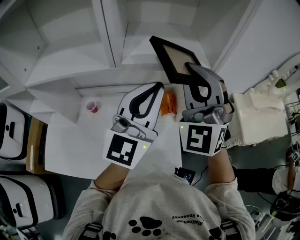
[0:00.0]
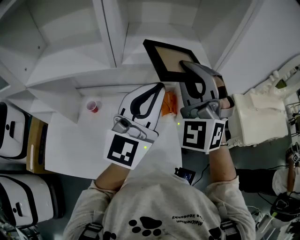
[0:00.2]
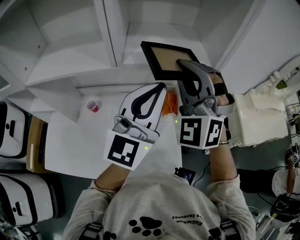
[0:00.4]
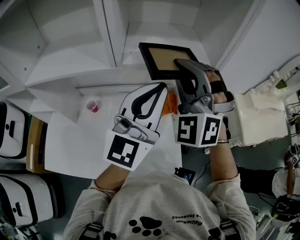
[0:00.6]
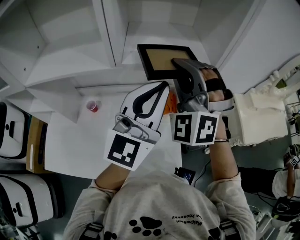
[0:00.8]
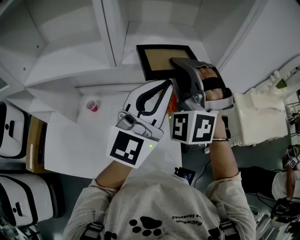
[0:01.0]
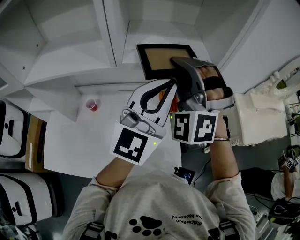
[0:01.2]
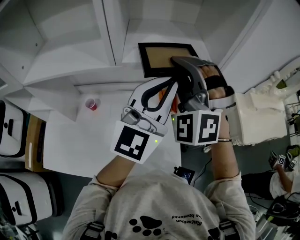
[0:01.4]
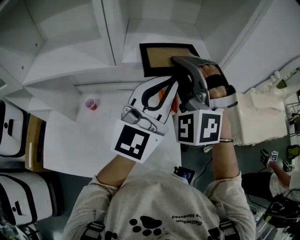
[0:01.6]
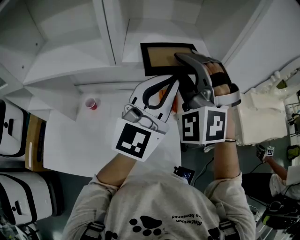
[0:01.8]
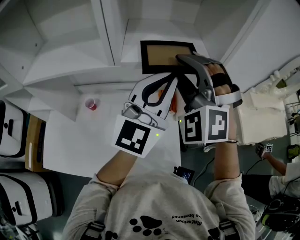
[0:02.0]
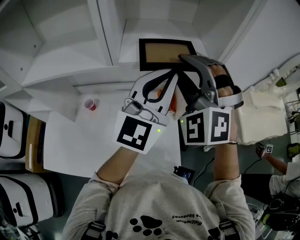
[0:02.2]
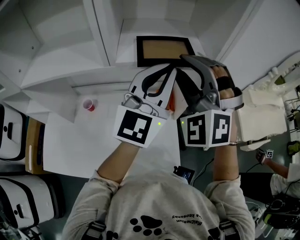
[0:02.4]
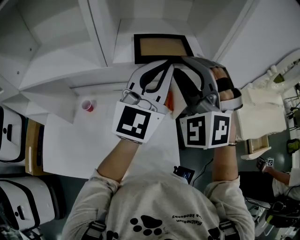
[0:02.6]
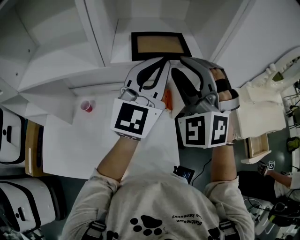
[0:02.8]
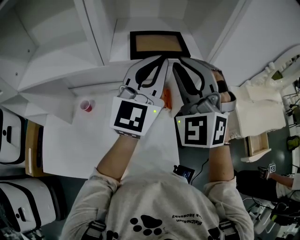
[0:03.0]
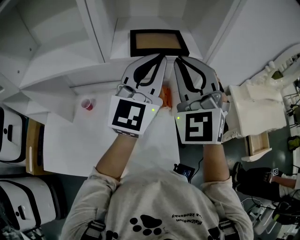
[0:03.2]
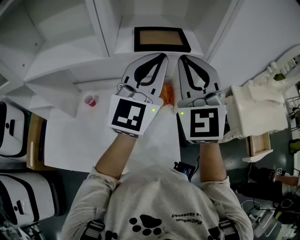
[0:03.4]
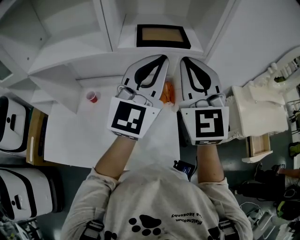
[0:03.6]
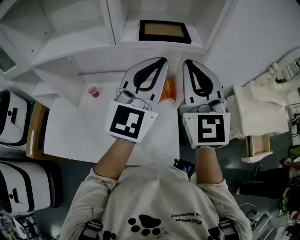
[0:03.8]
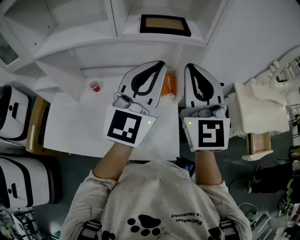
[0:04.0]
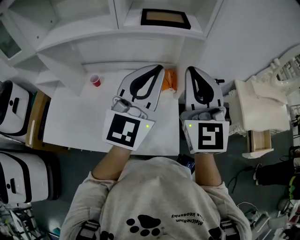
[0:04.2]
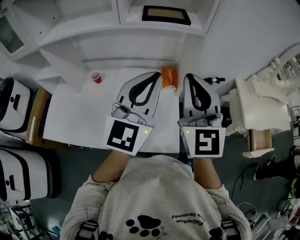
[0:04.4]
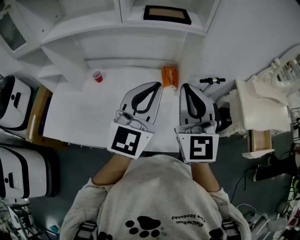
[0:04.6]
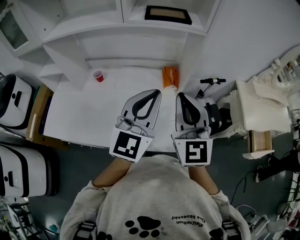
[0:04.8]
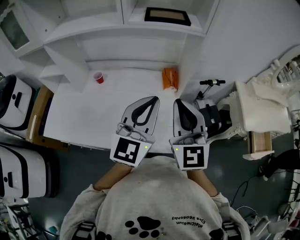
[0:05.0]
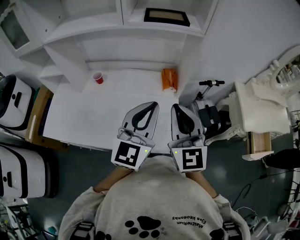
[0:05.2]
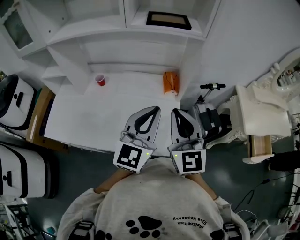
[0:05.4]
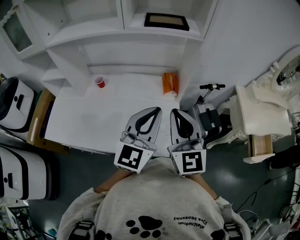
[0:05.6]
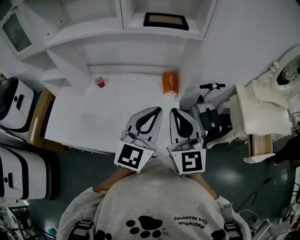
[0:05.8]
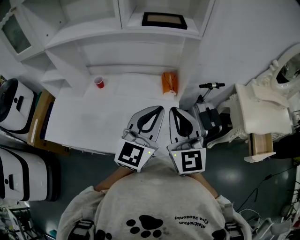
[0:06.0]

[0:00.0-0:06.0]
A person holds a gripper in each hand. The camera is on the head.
0:00.0 to 0:01.6: The right gripper ends up some 5 cm from where it was, and rotates some 30 degrees.
0:01.6 to 0:03.0: The grippers stay close to where they were, moving slightly.
0:03.0 to 0:04.4: The two grippers go approximately 20 cm backward. The right gripper rolls clockwise, seen from behind, by some 50 degrees.
0:04.4 to 0:06.0: Both grippers travel together downward and backward, some 10 cm.

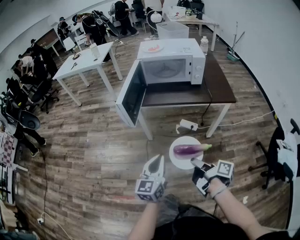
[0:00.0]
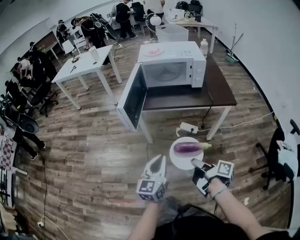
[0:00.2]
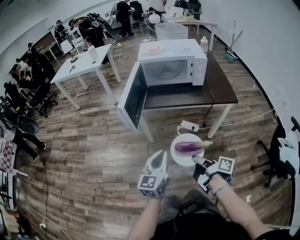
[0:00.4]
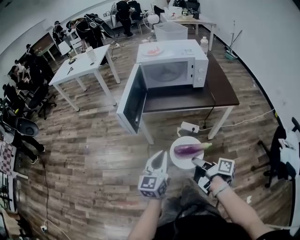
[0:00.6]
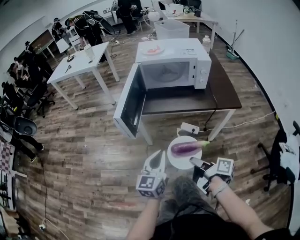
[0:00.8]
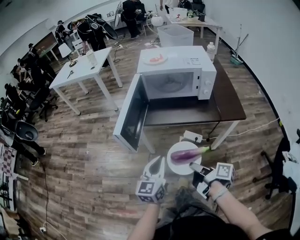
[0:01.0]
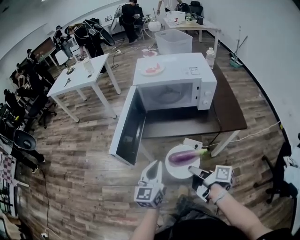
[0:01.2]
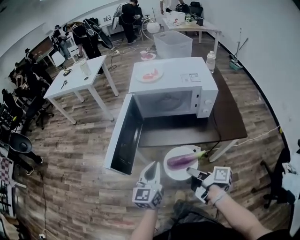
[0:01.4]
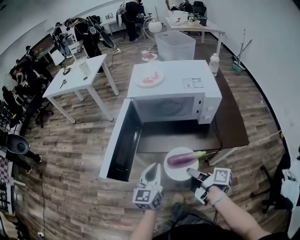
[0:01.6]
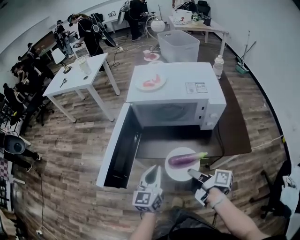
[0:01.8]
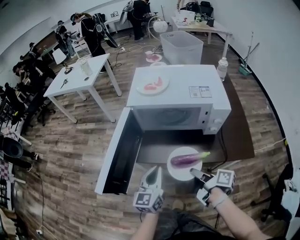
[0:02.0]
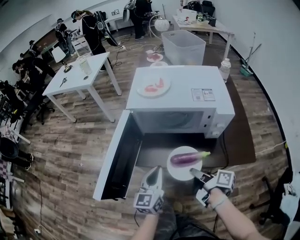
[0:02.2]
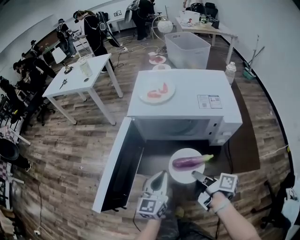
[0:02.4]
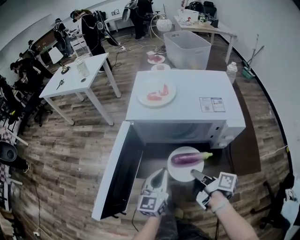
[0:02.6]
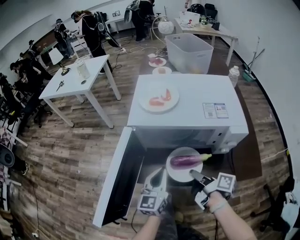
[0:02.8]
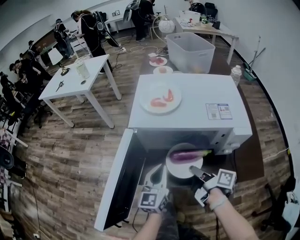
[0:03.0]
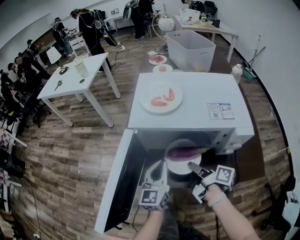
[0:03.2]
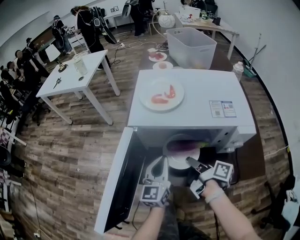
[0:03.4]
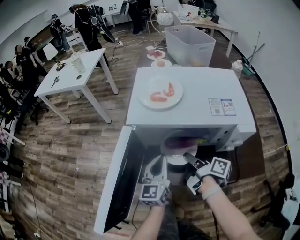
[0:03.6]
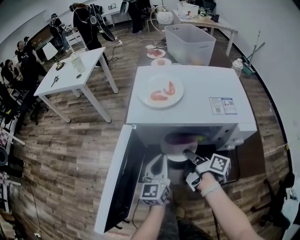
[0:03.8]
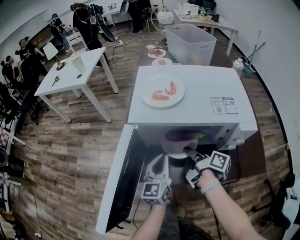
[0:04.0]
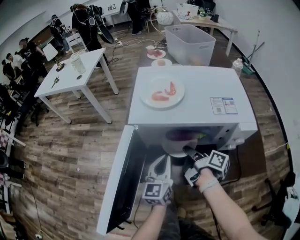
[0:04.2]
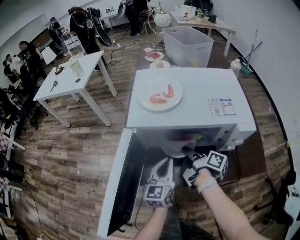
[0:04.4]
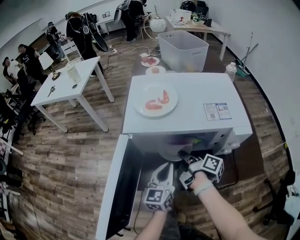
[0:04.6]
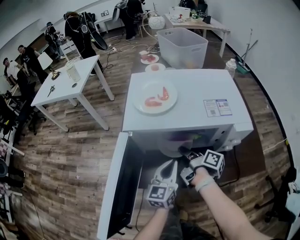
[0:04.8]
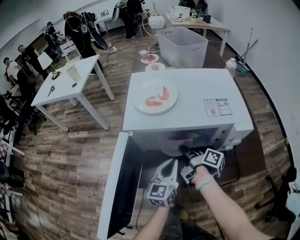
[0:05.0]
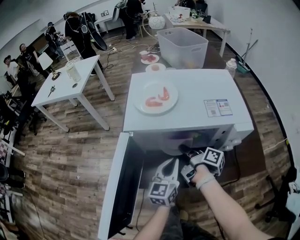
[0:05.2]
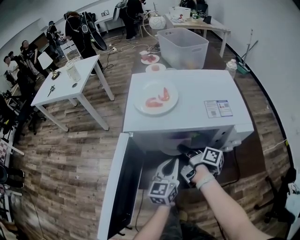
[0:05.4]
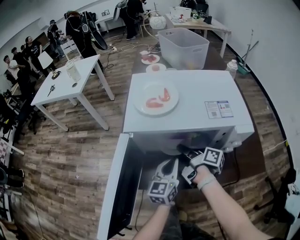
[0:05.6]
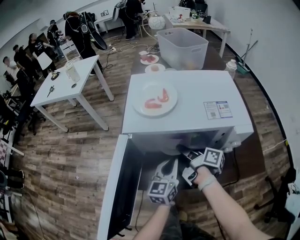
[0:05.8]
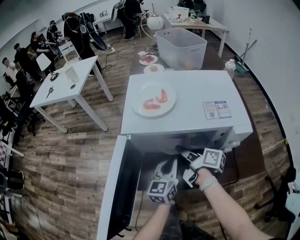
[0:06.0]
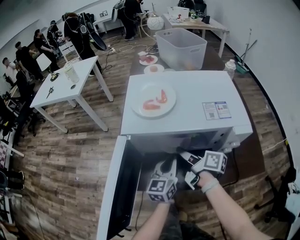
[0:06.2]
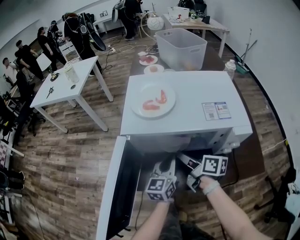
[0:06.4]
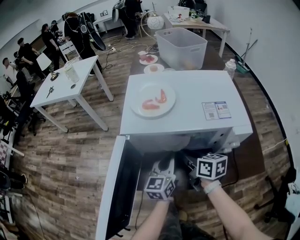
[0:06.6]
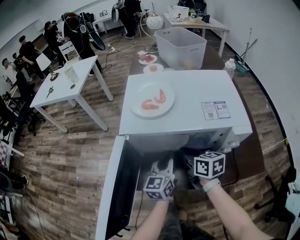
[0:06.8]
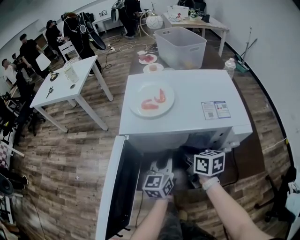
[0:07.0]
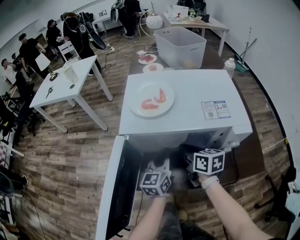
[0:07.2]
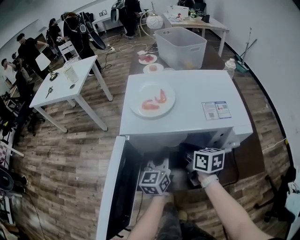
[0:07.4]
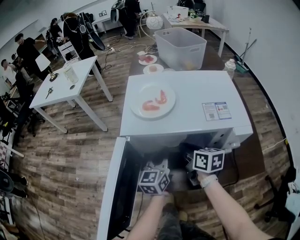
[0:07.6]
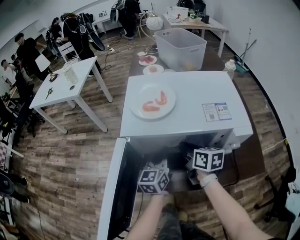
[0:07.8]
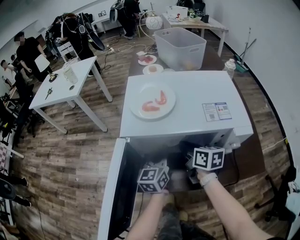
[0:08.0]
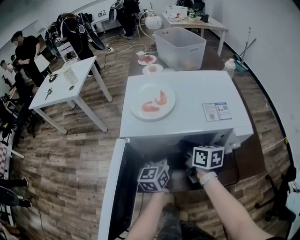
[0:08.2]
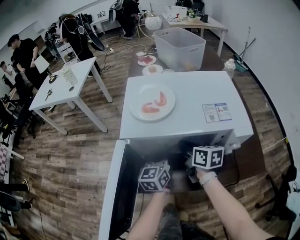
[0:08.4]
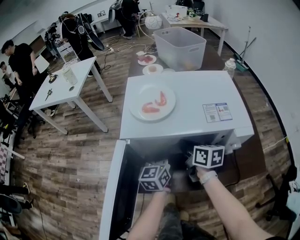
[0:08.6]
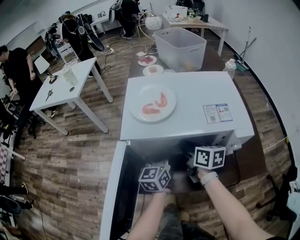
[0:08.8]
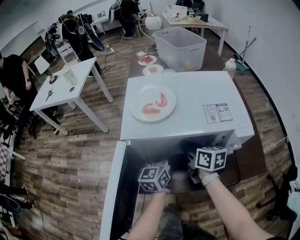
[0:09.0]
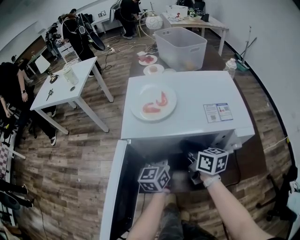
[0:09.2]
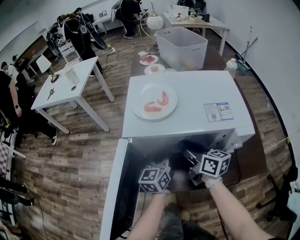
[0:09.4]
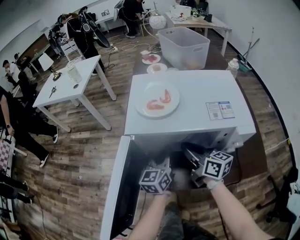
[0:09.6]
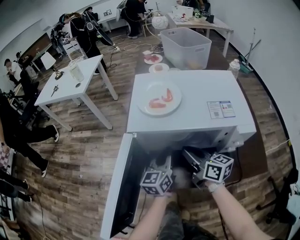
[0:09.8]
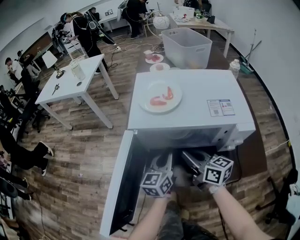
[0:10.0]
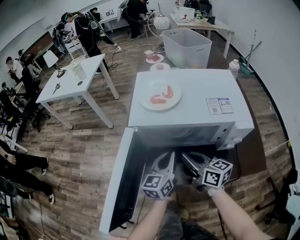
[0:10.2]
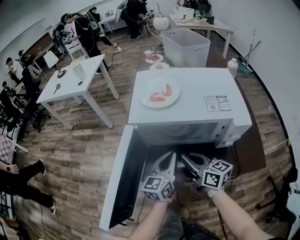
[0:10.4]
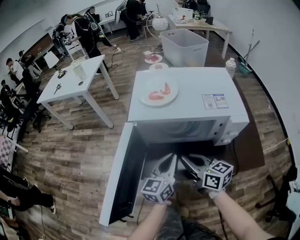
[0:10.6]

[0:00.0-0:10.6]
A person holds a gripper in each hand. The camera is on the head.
0:00.0 to 0:01.6: Both grippers move forward, about 30 cm.
0:01.6 to 0:03.0: Both grippers travel together forward, approximately 20 cm.
0:03.0 to 0:04.6: The right gripper is displaced forward by about 10 cm. Meanwhile the left gripper moves some 5 cm.
0:04.6 to 0:06.0: The right gripper opens its fingers.
0:06.0 to 0:07.6: The right gripper changes its angle by roughly 40 degrees, and closes its fingers, while the left gripper goes roughly 5 cm forward.
0:07.6 to 0:09.0: The grippers make only small movements.
0:09.0 to 0:10.6: Both grippers move backward, about 10 cm.

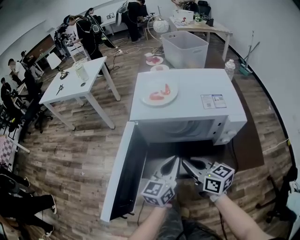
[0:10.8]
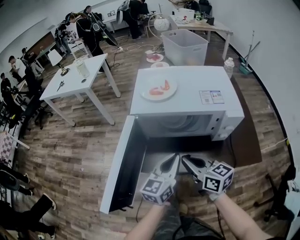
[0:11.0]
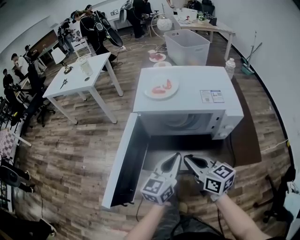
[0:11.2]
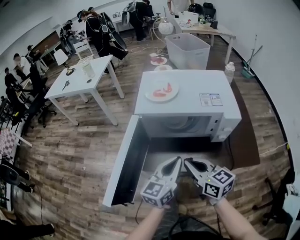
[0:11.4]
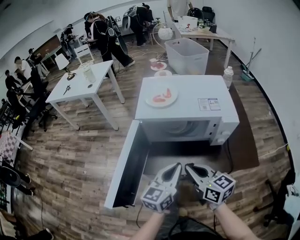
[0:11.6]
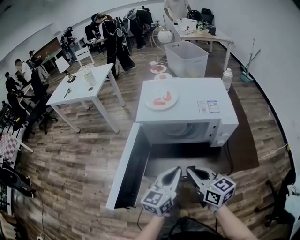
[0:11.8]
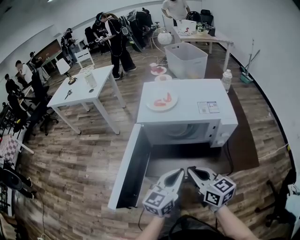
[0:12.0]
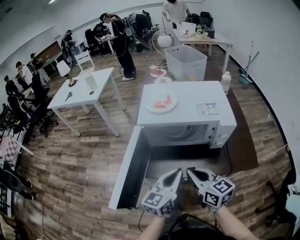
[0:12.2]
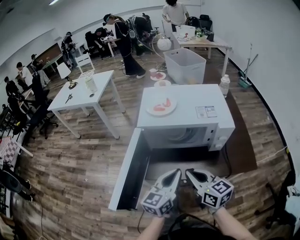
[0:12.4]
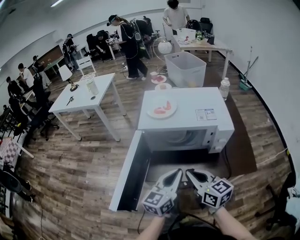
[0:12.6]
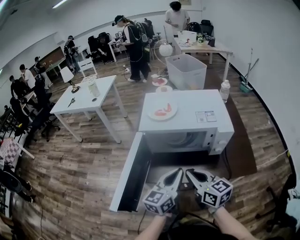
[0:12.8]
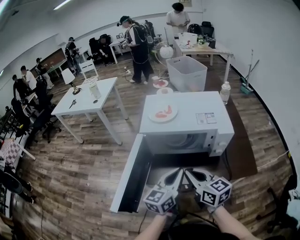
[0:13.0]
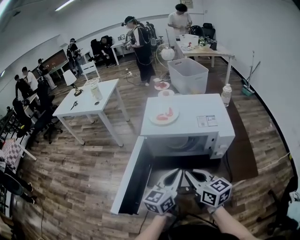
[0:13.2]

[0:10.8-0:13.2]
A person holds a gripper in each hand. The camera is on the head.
0:10.8 to 0:12.0: Both grippers move backward, about 5 cm.
0:12.0 to 0:13.2: The grippers make only small movements.

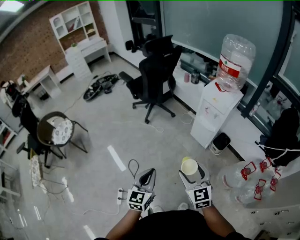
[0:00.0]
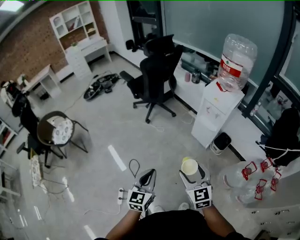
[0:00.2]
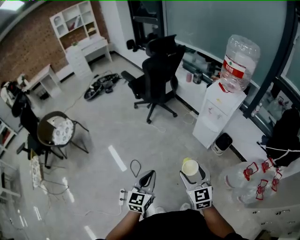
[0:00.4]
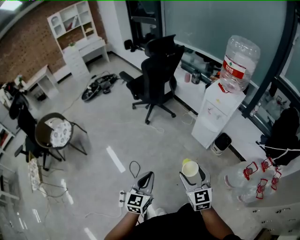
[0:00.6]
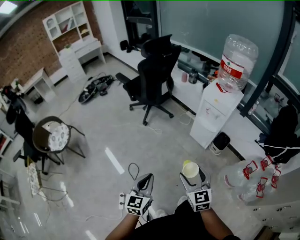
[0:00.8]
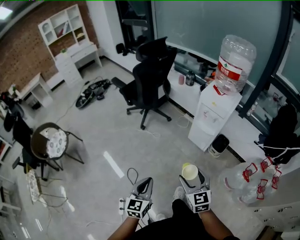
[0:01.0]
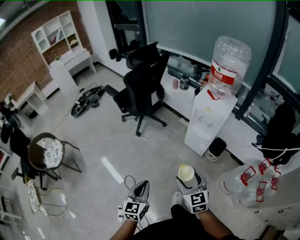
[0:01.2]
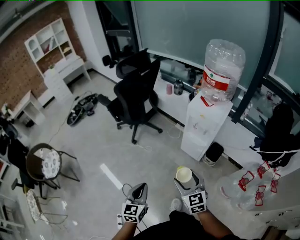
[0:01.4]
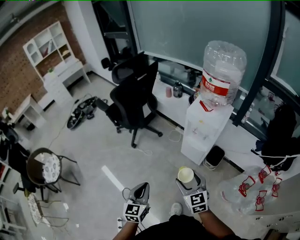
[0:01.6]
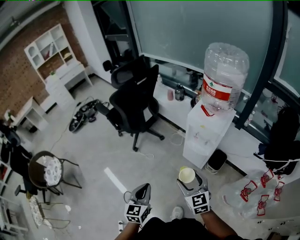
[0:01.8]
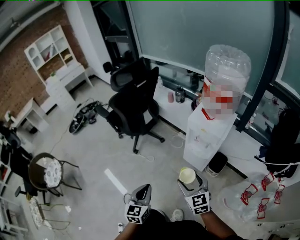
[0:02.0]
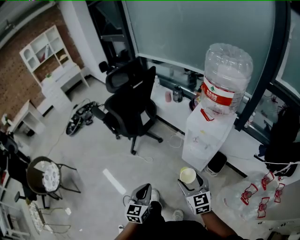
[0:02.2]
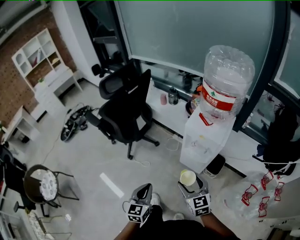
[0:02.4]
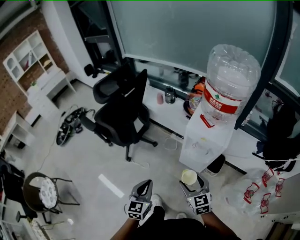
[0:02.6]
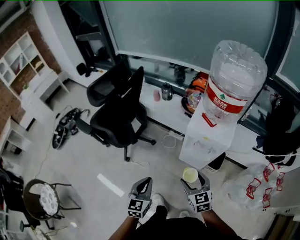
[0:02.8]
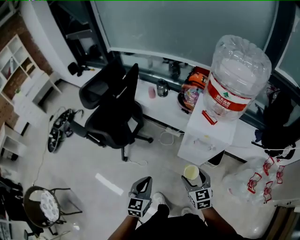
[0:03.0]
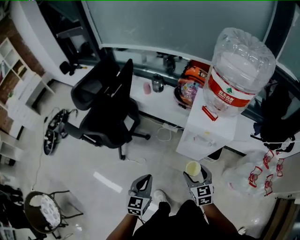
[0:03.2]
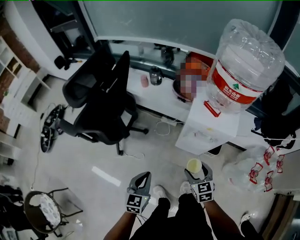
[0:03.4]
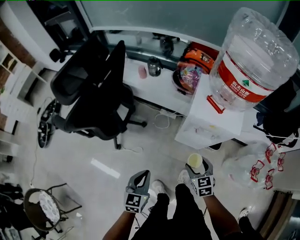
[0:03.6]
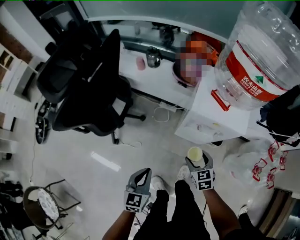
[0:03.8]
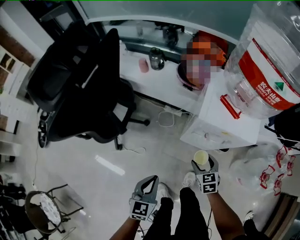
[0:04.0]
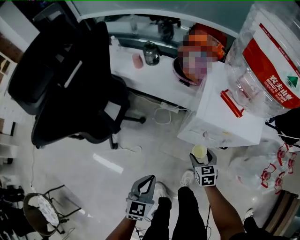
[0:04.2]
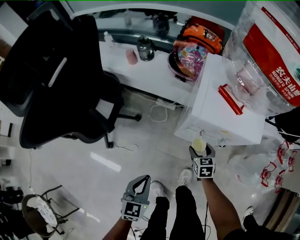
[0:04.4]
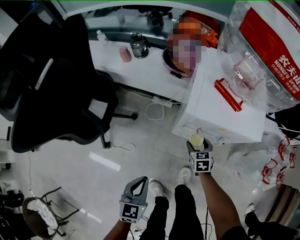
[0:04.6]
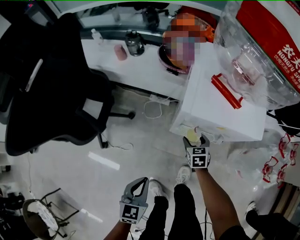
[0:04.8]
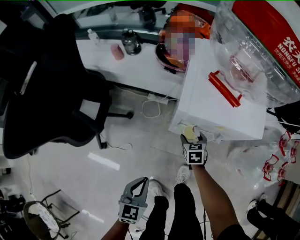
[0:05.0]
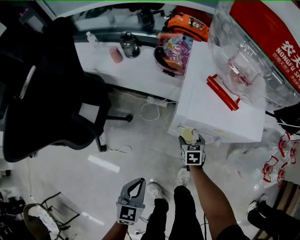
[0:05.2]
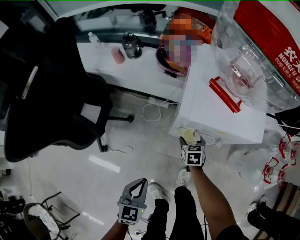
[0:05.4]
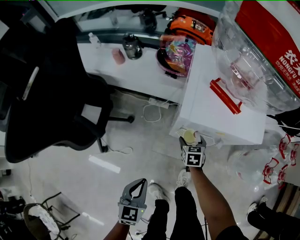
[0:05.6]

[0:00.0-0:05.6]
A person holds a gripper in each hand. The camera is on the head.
0:00.0 to 0:01.4: Both grippers move forward, about 15 cm.
0:01.4 to 0:02.8: The two grippers go approximately 25 cm forward.
0:02.8 to 0:04.2: The right gripper heads downward and forward, covering roughly 30 cm, and changes its angle by roughly 20 degrees. The left gripper is displaced downward and forward by some 20 cm.
0:04.2 to 0:05.6: The left gripper moves downward, roughly 5 cm. Meanwhile the right gripper goes approximately 15 cm downward and forward.
